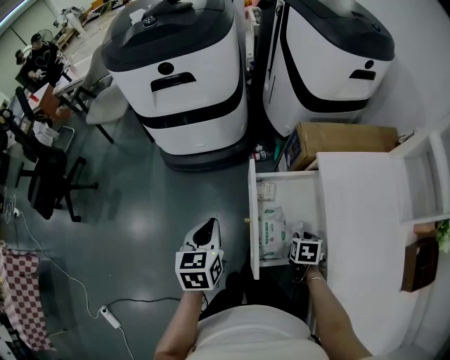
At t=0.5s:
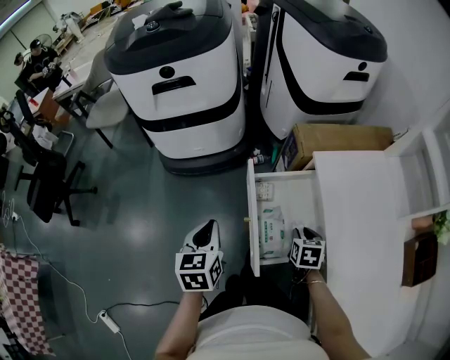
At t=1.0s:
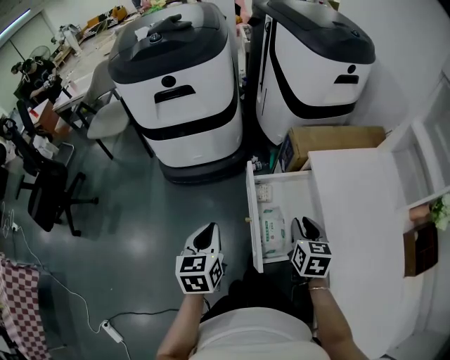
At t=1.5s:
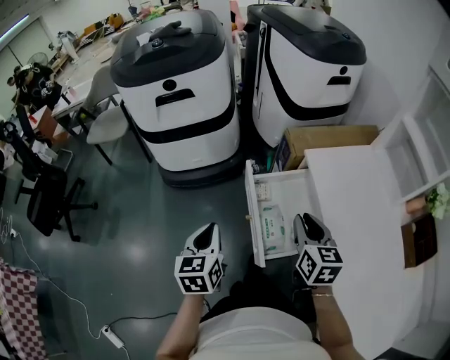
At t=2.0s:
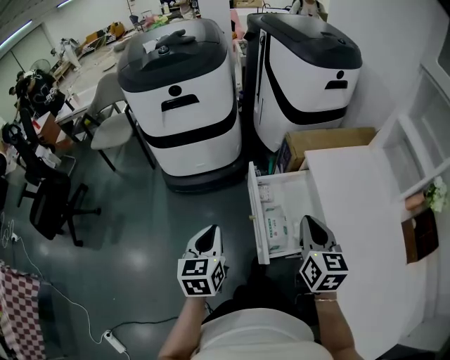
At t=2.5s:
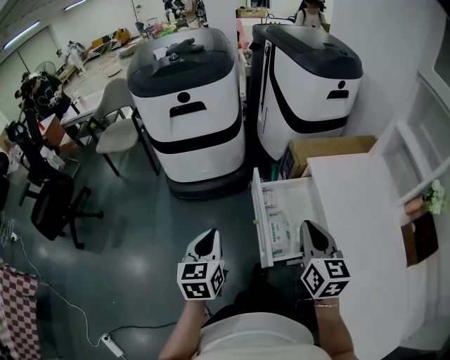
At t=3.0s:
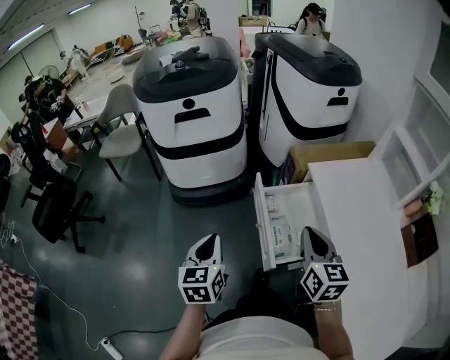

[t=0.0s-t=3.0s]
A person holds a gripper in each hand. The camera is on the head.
t=0.0s to t=1.5s: The left gripper shifts by about 5 cm; the right gripper goes approximately 25 cm upward, and tips its fingers upward by some 40 degrees.
t=1.5s to t=3.0s: The right gripper heads upward and backward, covering approximately 10 cm. The left gripper moves roughly 5 cm.

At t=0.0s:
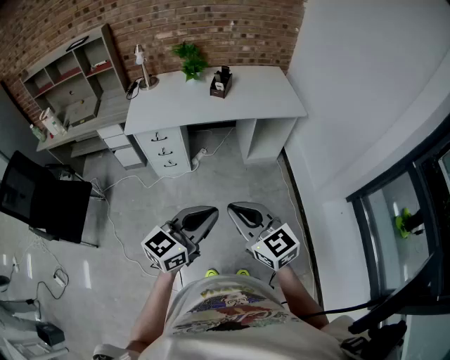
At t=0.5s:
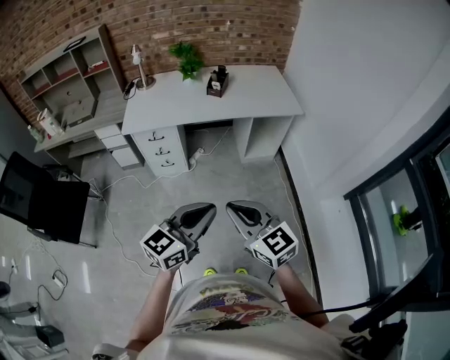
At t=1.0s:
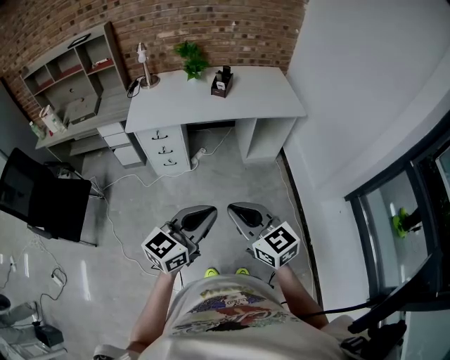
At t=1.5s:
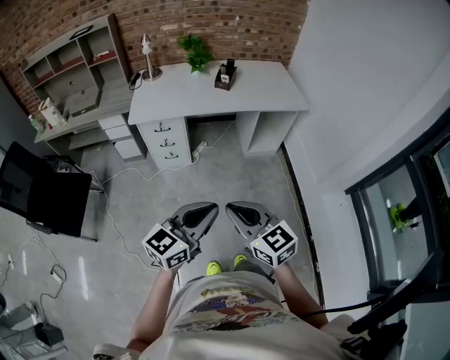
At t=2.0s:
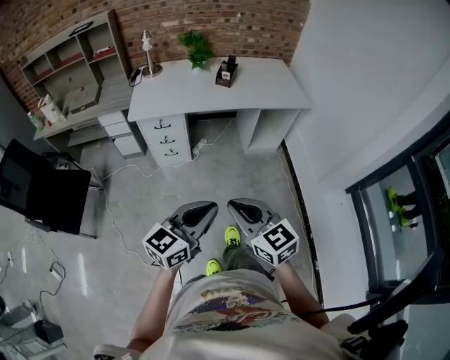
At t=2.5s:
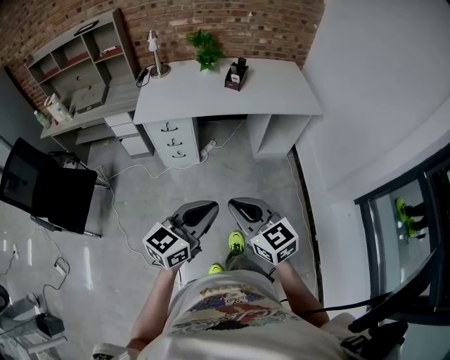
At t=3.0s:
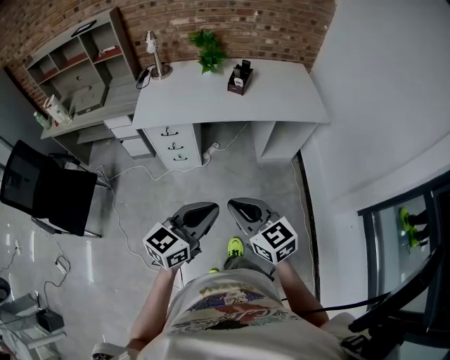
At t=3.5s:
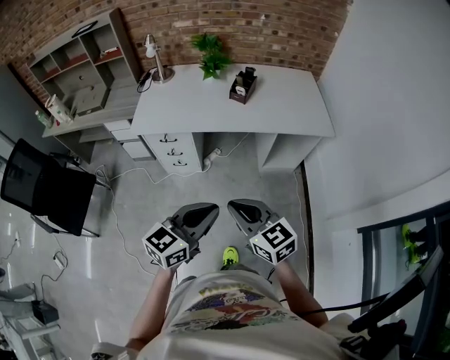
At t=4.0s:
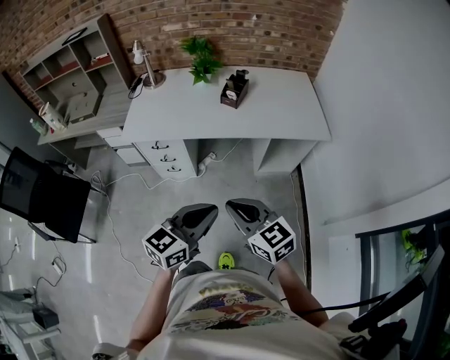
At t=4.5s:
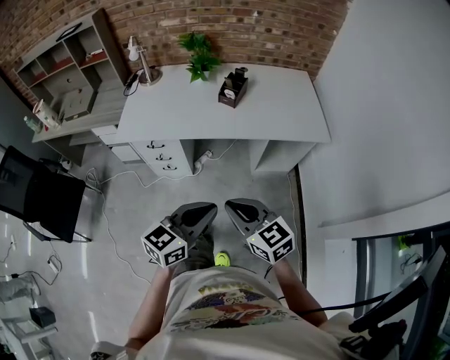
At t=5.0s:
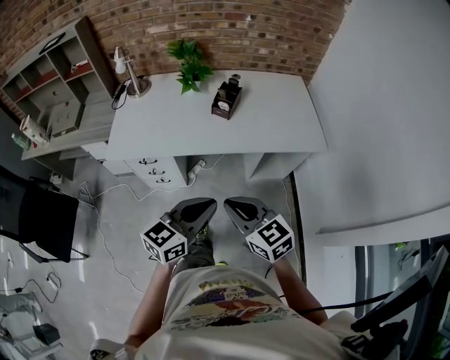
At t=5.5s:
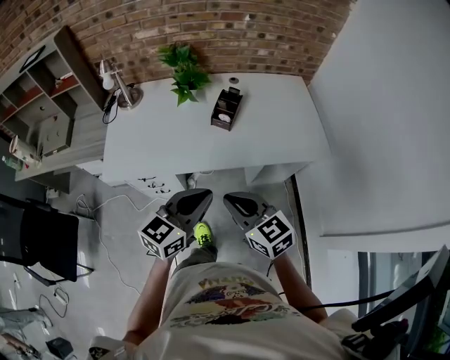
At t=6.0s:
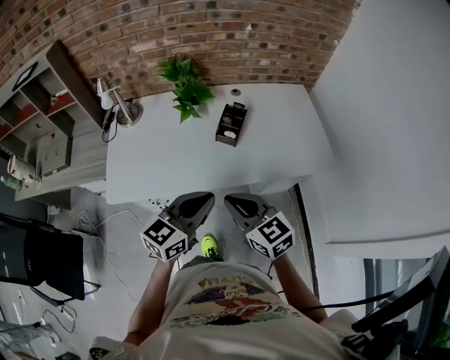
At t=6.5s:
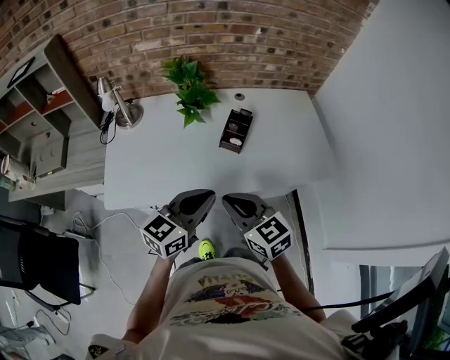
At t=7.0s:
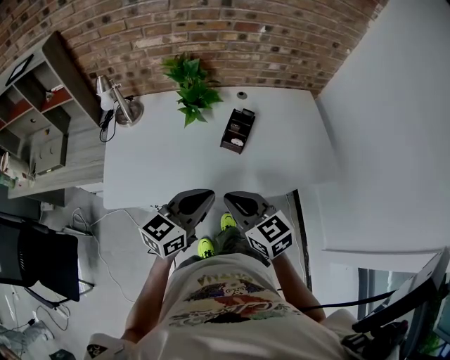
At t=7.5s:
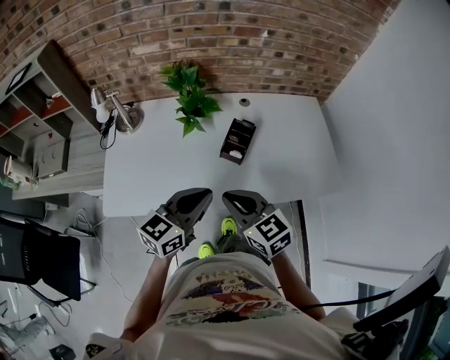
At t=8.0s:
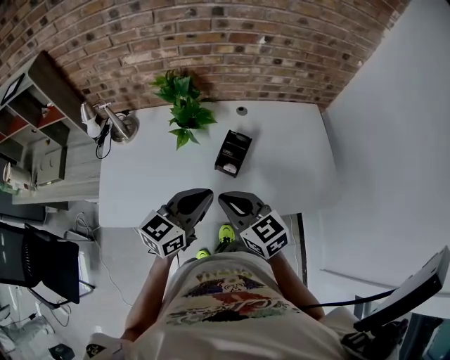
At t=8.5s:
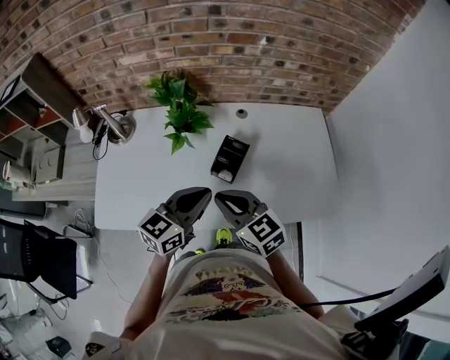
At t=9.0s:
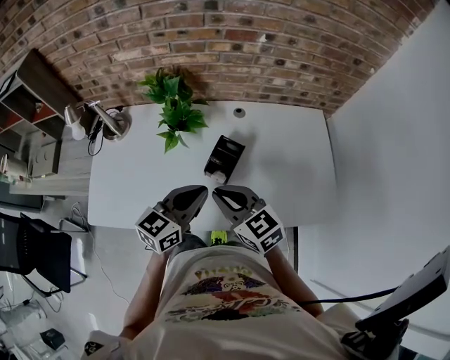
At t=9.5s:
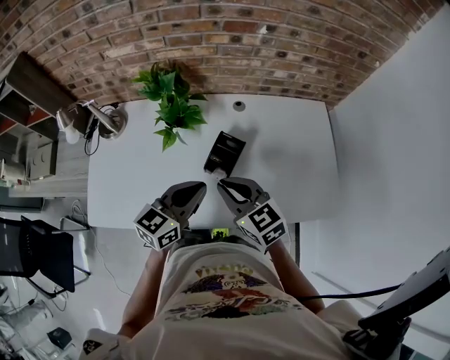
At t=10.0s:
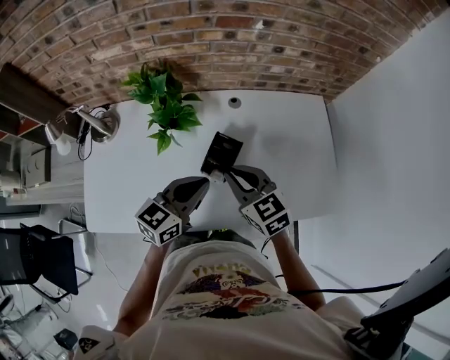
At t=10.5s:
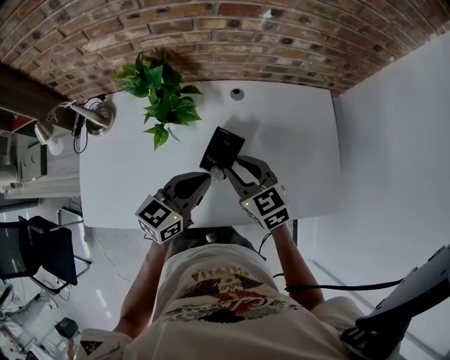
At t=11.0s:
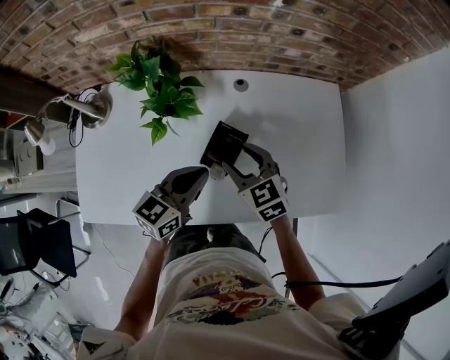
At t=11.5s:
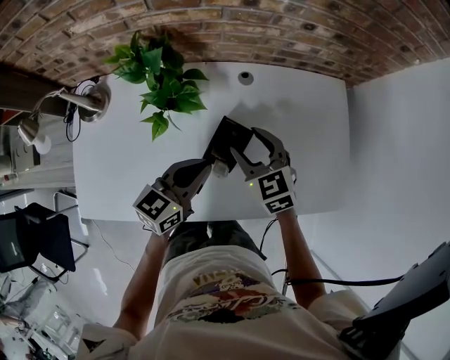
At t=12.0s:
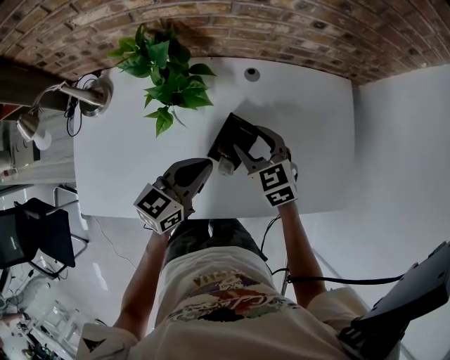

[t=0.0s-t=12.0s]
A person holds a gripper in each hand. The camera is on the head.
t=0.0s to t=2.0s: The left gripper goes roughly 5 cm to the left. The right gripper shifts by about 5 cm.
t=2.0s to t=4.0s: The grippers both shift forward by about 25 cm.
t=4.0s to t=6.0s: Both grippers travel together forward, approximately 30 cm.
t=6.0s to t=8.0s: Both grippers move forward, roughly 15 cm.
t=8.0s to t=10.0s: The left gripper moves forward, approximately 10 cm, while the right gripper heads forward and to the right, covering roughly 15 cm.
t=10.0s to t=12.0s: The left gripper heads downward, covering roughly 5 cm. The right gripper moves forward and downward, approximately 15 cm, and opens.

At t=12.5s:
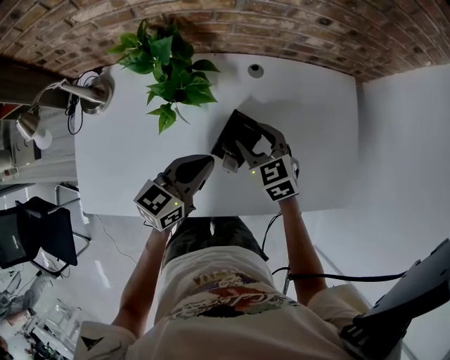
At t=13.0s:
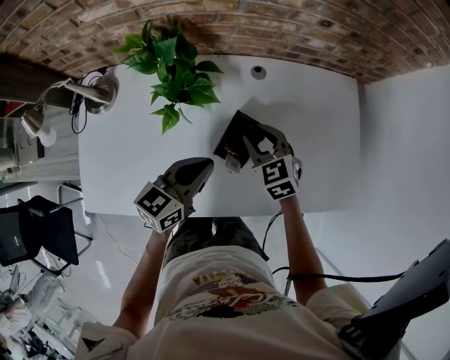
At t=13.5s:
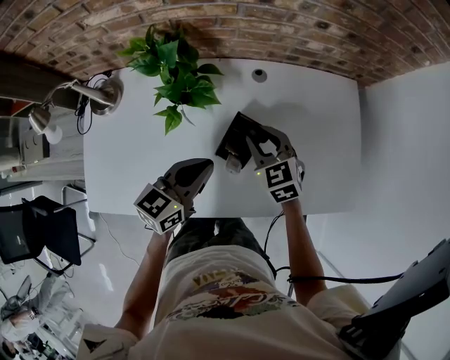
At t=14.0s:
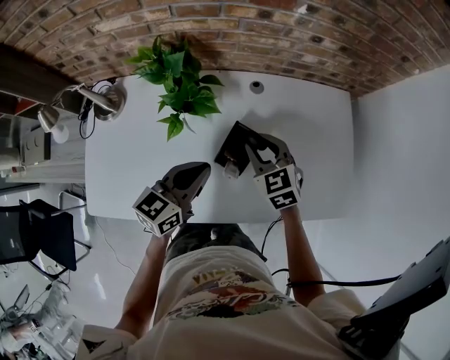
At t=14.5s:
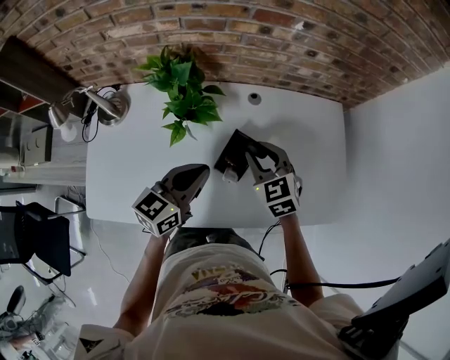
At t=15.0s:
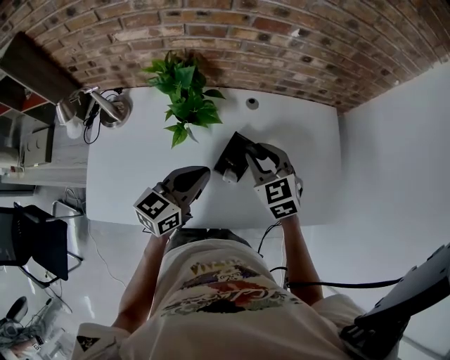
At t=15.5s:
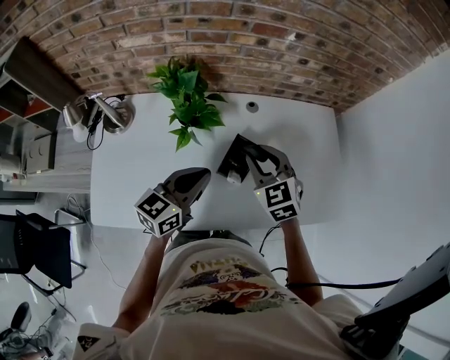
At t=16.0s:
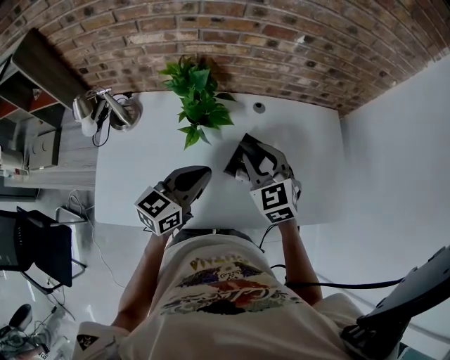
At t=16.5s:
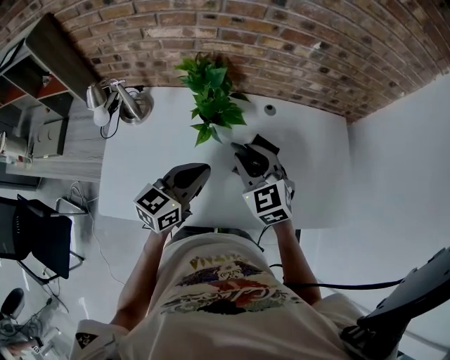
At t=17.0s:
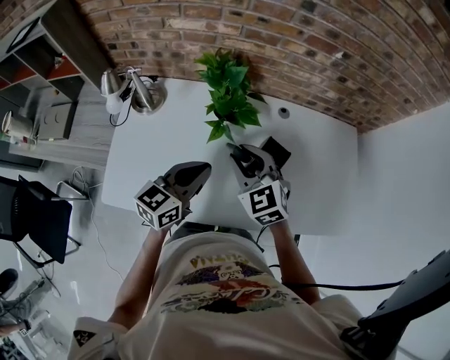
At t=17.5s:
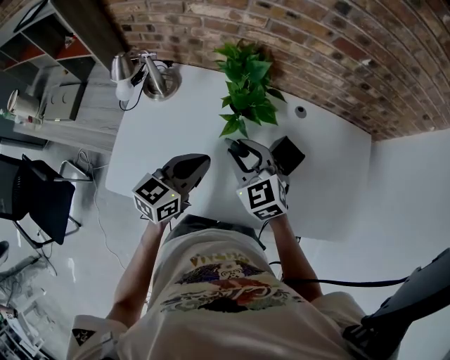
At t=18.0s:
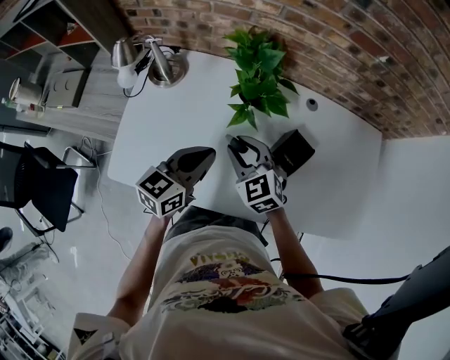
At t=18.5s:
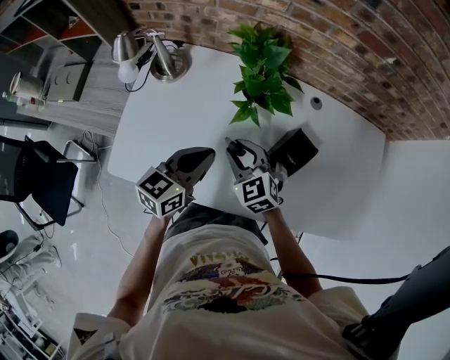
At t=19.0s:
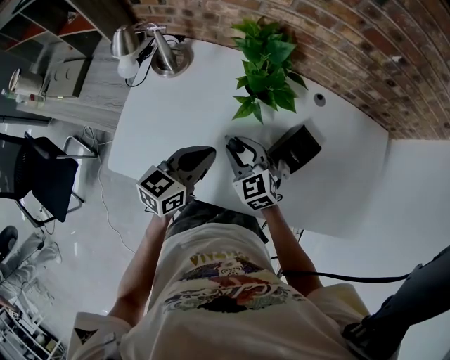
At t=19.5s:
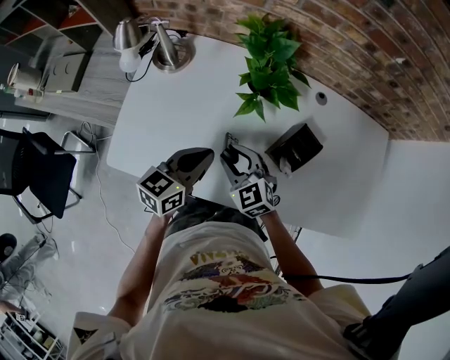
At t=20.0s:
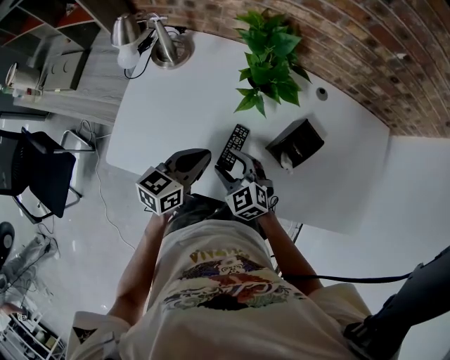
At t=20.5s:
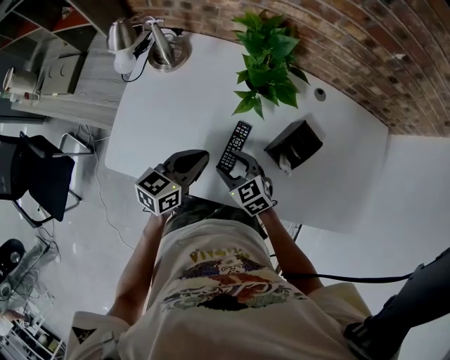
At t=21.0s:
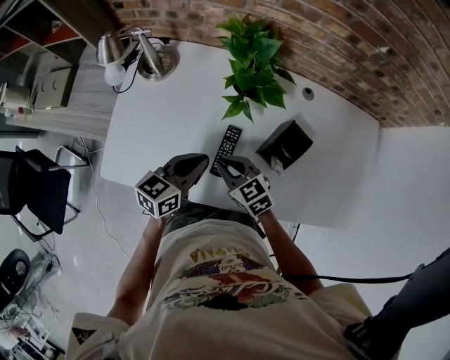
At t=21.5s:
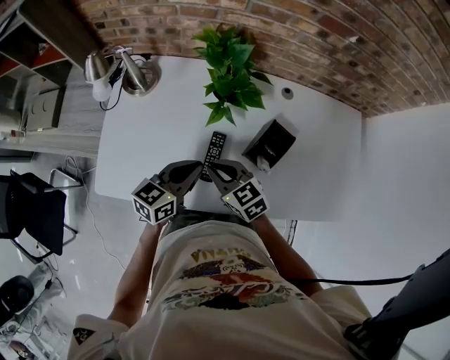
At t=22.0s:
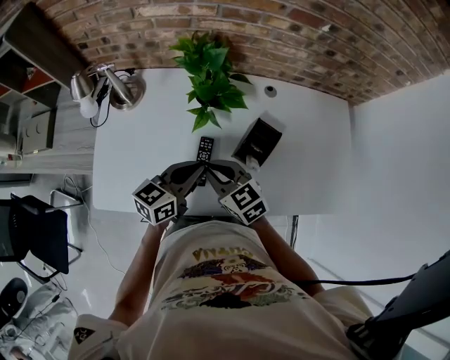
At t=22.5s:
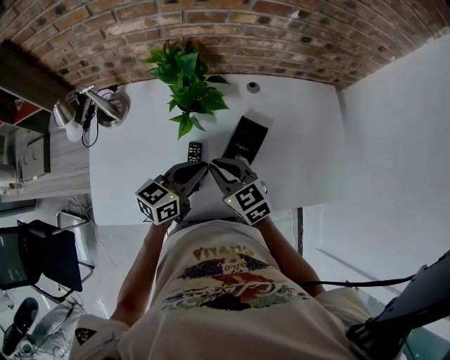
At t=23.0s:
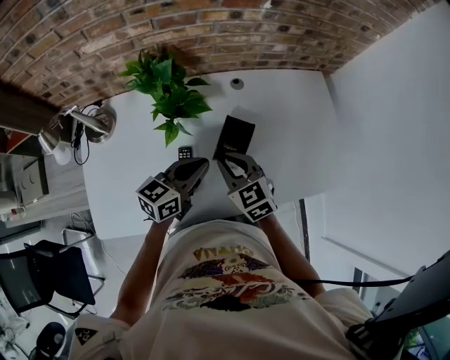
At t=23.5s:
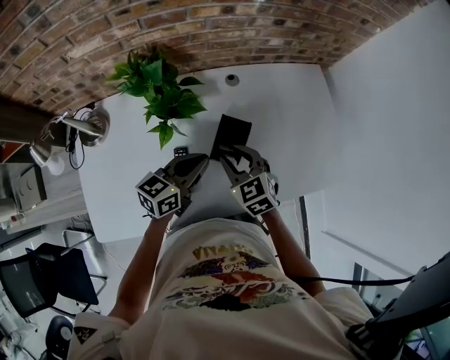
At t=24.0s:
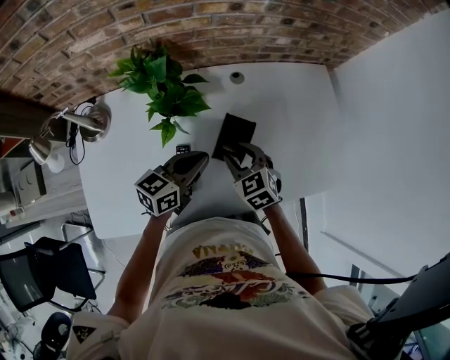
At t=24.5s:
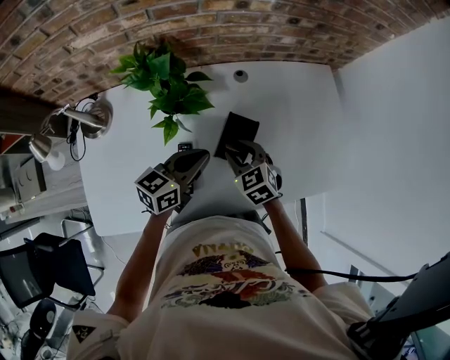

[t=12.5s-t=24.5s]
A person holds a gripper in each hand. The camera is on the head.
t=12.5s to t=14.5s: The grippers both shift upward by roughly 5 cm. The right gripper closes its fingers.
t=14.5s to t=16.5s: The left gripper heads to the left, covering about 5 cm. Meanwhile the right gripper goes about 15 cm to the left, upward and backward.
t=16.5s to t=18.5s: The left gripper moves to the left and downward, some 10 cm; the right gripper shifts approximately 15 cm downward and to the left.
t=18.5s to t=20.5s: The right gripper moves downward and backward, approximately 10 cm, and opens its fingers, while the left gripper is displaced downward by approximately 5 cm.
t=20.5s to t=22.5s: The left gripper shifts approximately 15 cm to the right and upward, and turns by some 20 degrees, while the right gripper shifts about 15 cm upward and to the right, swivels roughly 20 degrees, and closes up.
t=22.5s to t=24.5s: The left gripper moves forward, roughly 5 cm. The right gripper is displaced to the right, forward and downward by roughly 15 cm, turns by about 20 degrees, and opens its fingers.
